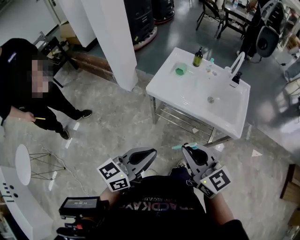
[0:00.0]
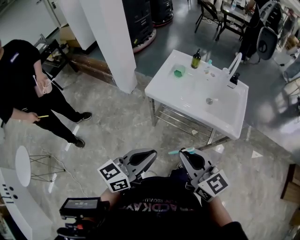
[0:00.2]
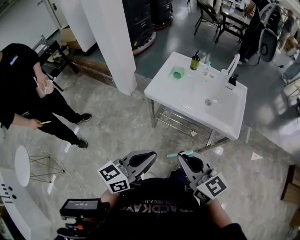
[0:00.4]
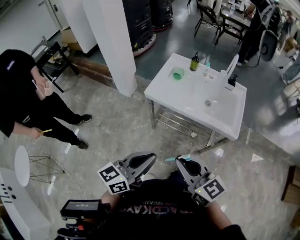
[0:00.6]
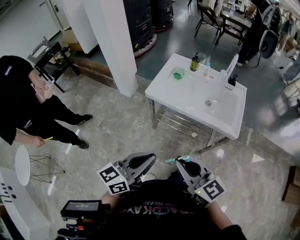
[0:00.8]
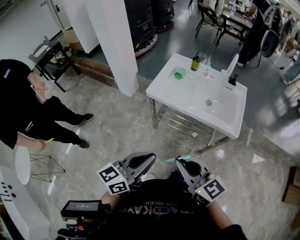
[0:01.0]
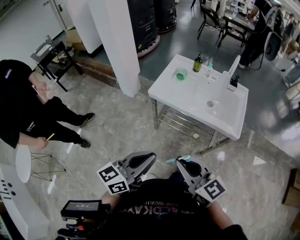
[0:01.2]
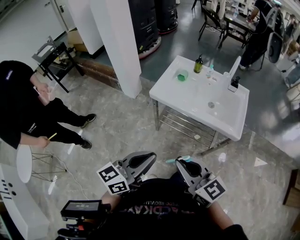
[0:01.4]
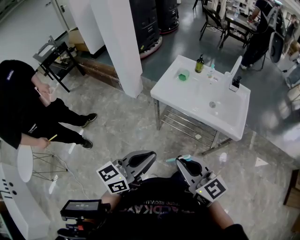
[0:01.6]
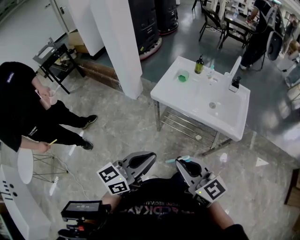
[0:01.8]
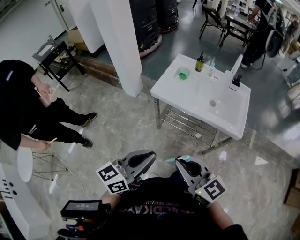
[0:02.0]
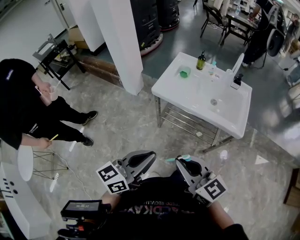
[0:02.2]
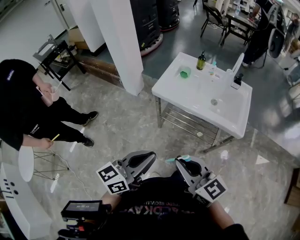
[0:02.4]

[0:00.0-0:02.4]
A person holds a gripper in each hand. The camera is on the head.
0:00.0 to 0:01.2: The right gripper is displaced backward by roughly 5 cm.
0:01.2 to 0:02.4: The grippers move only a little.

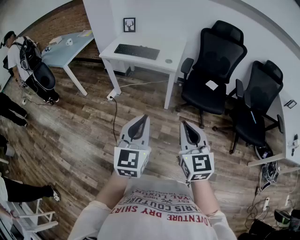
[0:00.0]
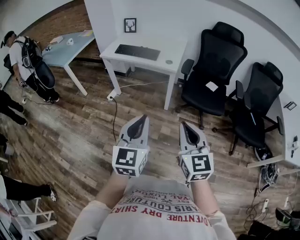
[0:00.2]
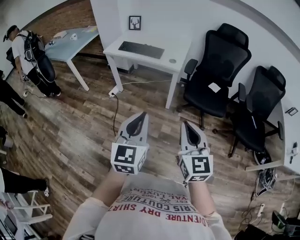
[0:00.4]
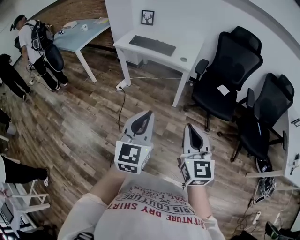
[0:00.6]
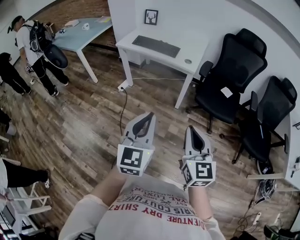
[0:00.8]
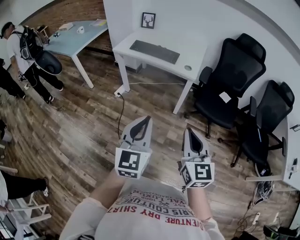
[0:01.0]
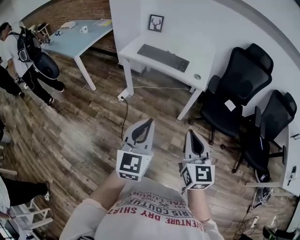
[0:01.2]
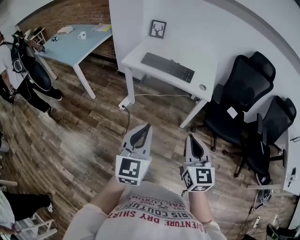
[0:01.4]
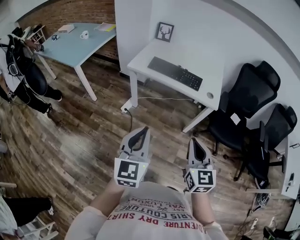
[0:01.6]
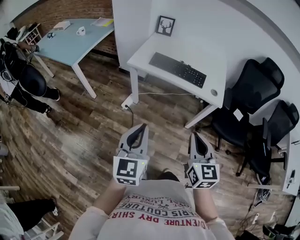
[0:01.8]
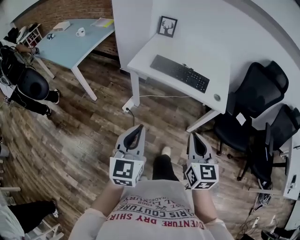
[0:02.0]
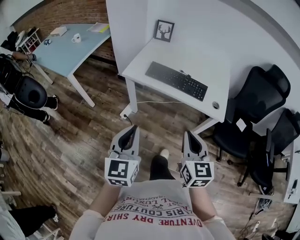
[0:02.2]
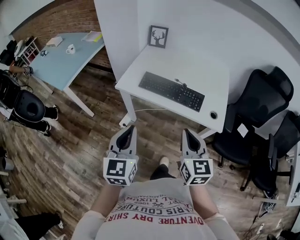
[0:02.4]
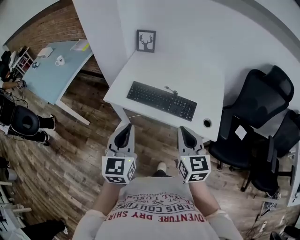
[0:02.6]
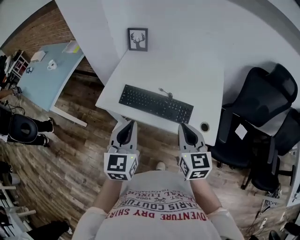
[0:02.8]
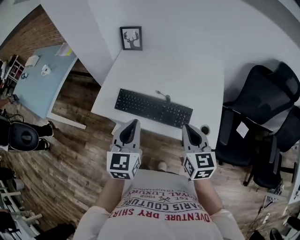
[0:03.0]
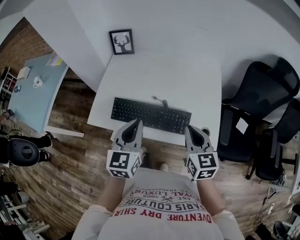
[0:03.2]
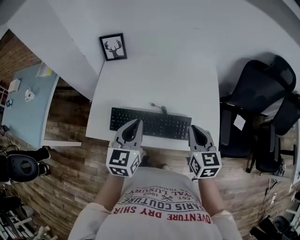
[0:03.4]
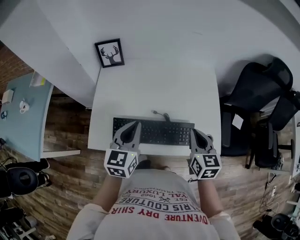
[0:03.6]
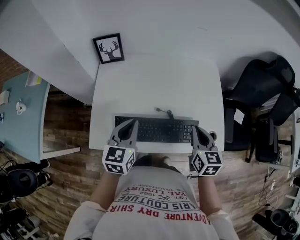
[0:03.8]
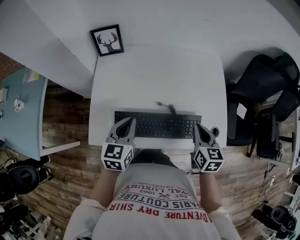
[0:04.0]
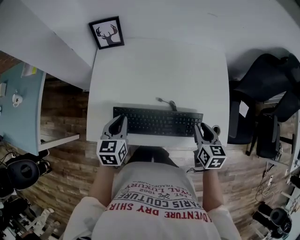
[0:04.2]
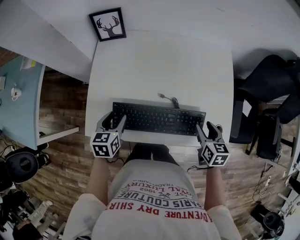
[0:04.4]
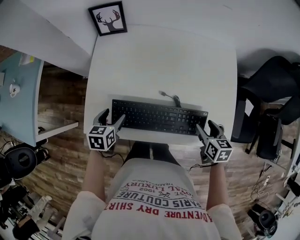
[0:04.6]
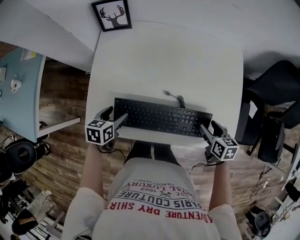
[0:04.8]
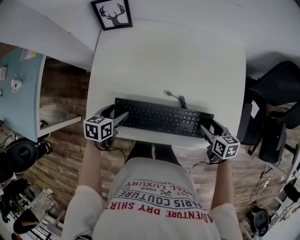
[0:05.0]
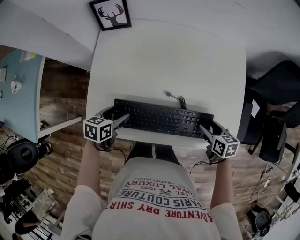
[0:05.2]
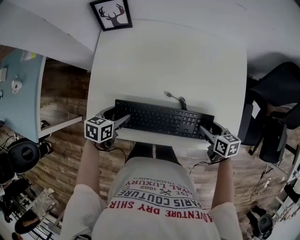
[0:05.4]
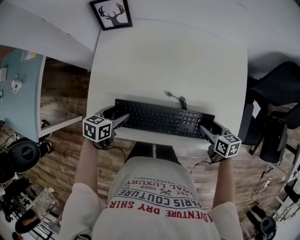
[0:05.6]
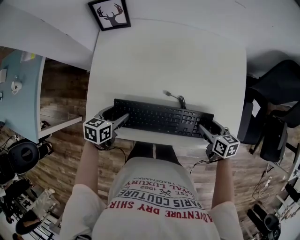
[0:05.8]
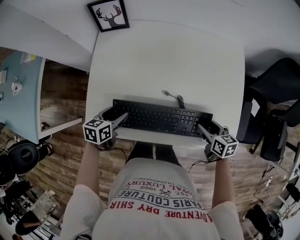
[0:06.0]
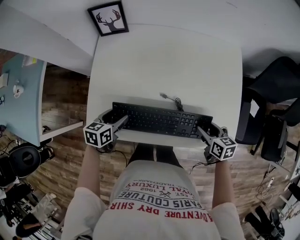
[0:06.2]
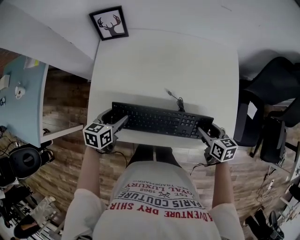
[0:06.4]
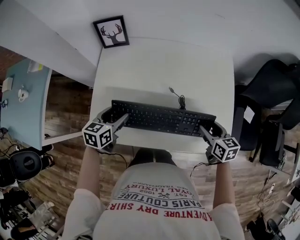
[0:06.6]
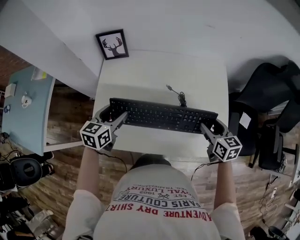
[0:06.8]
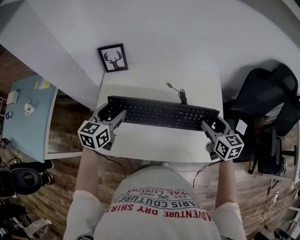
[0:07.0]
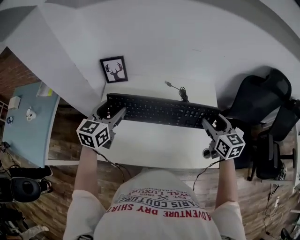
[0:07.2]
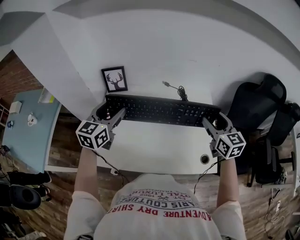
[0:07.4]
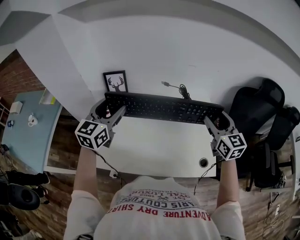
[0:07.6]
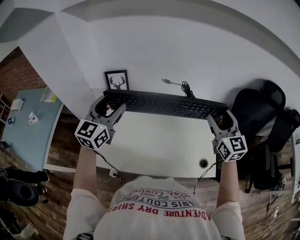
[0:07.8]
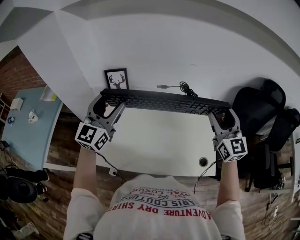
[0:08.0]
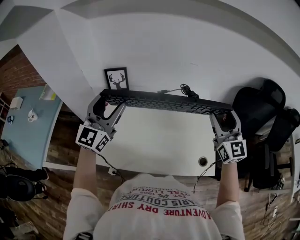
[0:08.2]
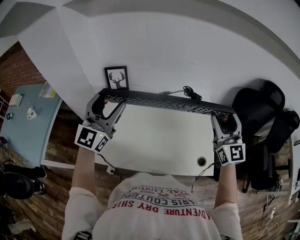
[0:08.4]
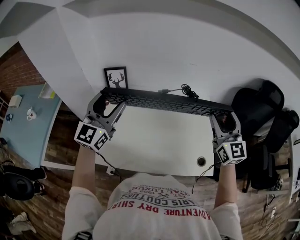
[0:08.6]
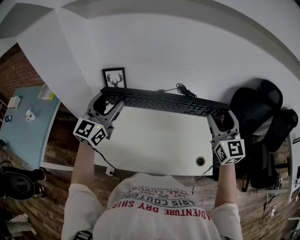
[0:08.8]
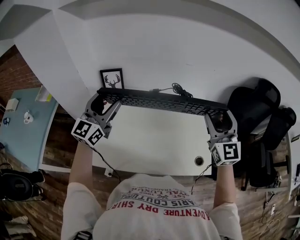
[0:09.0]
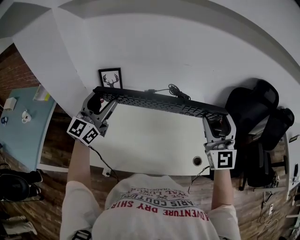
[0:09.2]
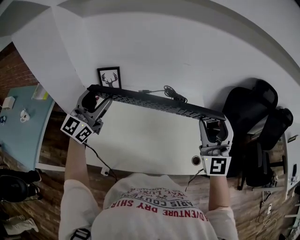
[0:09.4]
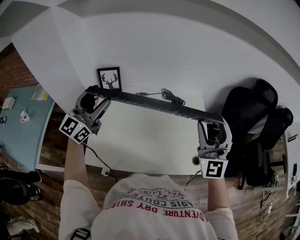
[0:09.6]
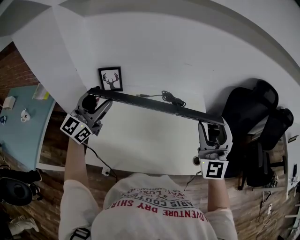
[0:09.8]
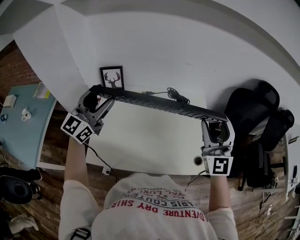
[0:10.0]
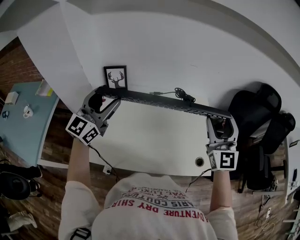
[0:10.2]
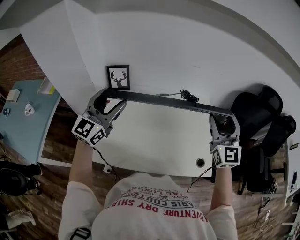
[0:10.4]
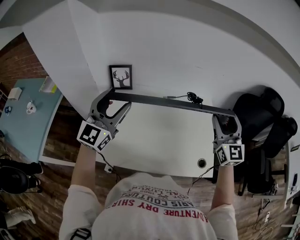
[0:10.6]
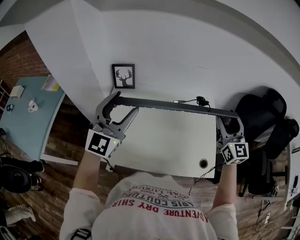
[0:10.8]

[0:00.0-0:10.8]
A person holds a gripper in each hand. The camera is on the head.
0:00.0 to 0:01.6: Both grippers move to the left and forward, roughly 40 cm.
0:01.6 to 0:03.0: Both grippers are carried forward, approximately 50 cm.
0:03.0 to 0:04.6: The left gripper goes roughly 35 cm downward, to the left and forward, tilts its fingers roughly 30 degrees downward, and opens. The right gripper heads downward and forward, covering about 25 cm, changes its angle by roughly 30 degrees, and opens.
0:04.6 to 0:06.2: The grippers move only a little.
0:06.2 to 0:07.8: Both grippers move upward, about 35 cm. The right gripper angles its fingers upward, by approximately 40 degrees. Meanwhile the left gripper points its fingers some 40 degrees further upward.
0:07.8 to 0:09.2: The right gripper is displaced backward by approximately 5 cm, and rotates approximately 20 degrees.
0:09.2 to 0:10.8: The right gripper goes approximately 5 cm forward. Meanwhile the left gripper moves approximately 5 cm.

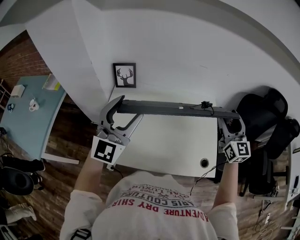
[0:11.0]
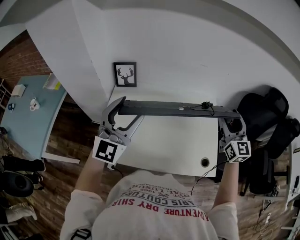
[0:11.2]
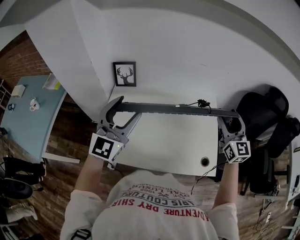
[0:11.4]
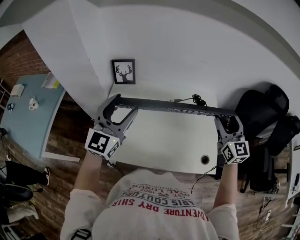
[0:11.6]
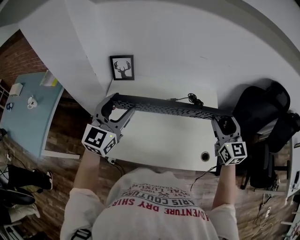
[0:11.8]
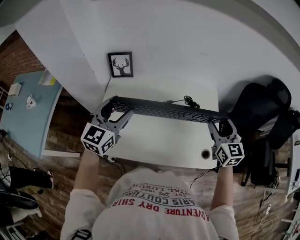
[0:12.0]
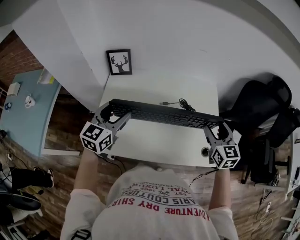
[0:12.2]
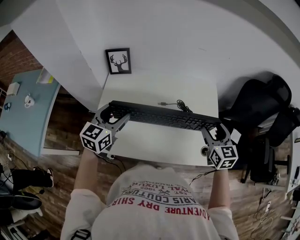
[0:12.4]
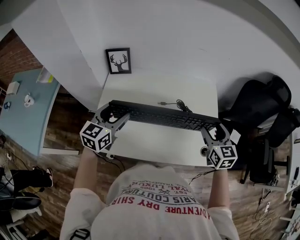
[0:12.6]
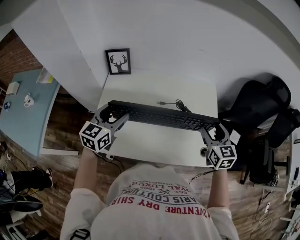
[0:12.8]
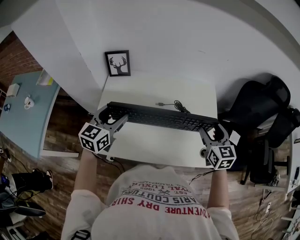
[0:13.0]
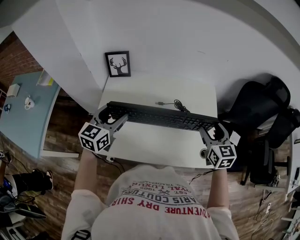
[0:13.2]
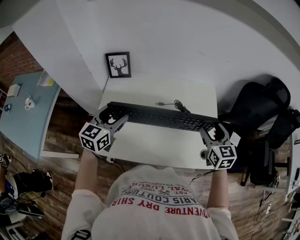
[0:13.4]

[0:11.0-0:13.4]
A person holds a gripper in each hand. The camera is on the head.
0:11.0 to 0:12.2: The grippers both shift downward by roughly 15 cm. The right gripper changes its angle by approximately 20 degrees. The left gripper changes its angle by approximately 40 degrees.
0:12.2 to 0:13.4: The grippers make only small movements.

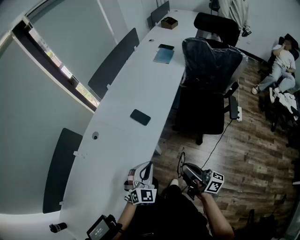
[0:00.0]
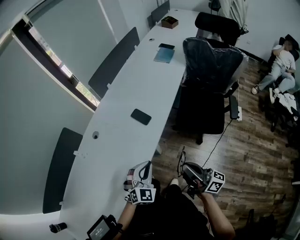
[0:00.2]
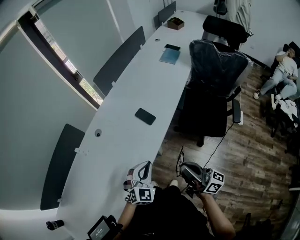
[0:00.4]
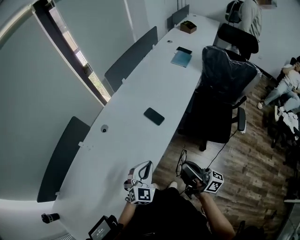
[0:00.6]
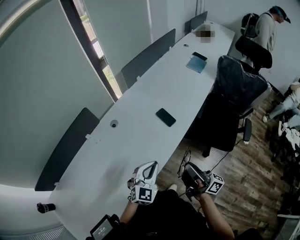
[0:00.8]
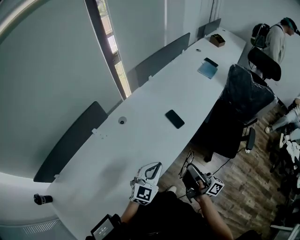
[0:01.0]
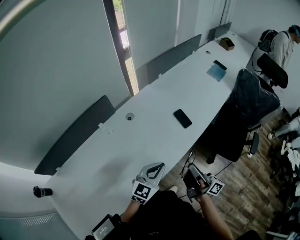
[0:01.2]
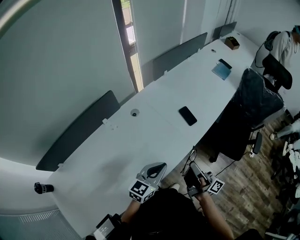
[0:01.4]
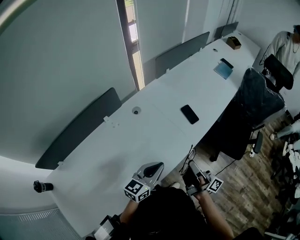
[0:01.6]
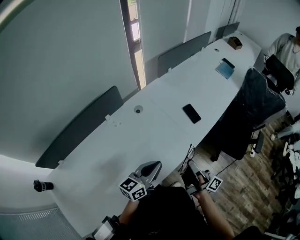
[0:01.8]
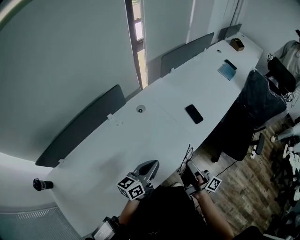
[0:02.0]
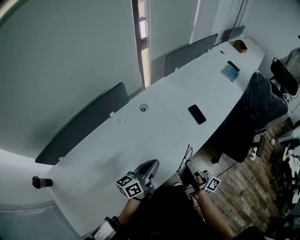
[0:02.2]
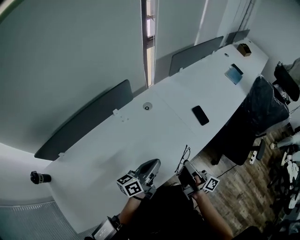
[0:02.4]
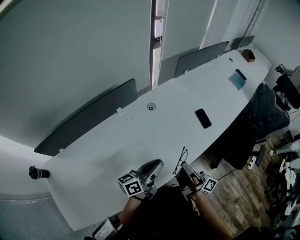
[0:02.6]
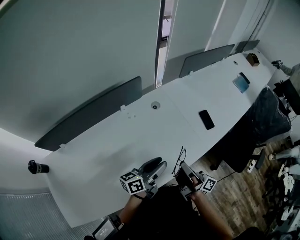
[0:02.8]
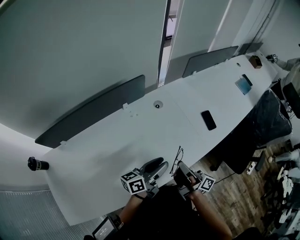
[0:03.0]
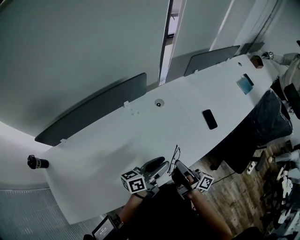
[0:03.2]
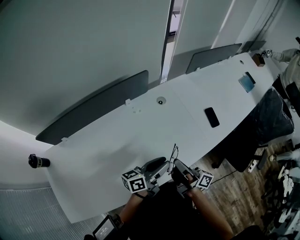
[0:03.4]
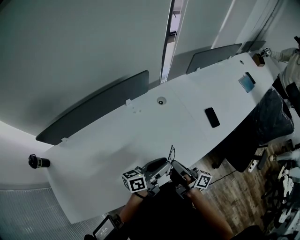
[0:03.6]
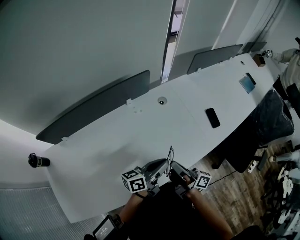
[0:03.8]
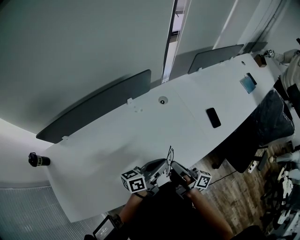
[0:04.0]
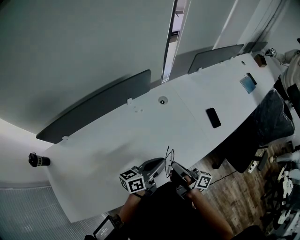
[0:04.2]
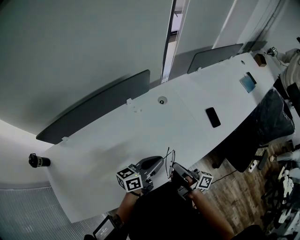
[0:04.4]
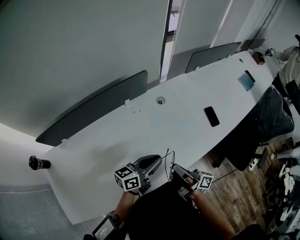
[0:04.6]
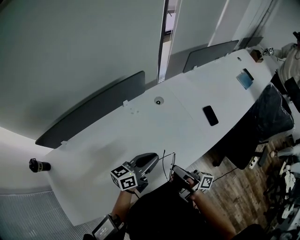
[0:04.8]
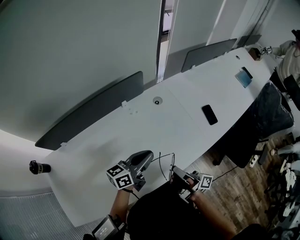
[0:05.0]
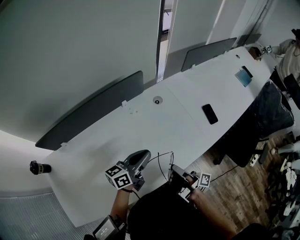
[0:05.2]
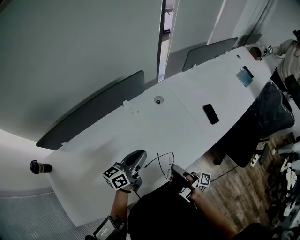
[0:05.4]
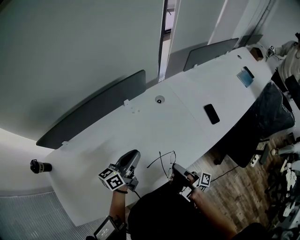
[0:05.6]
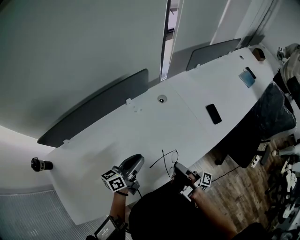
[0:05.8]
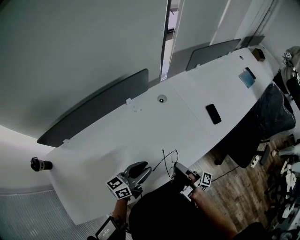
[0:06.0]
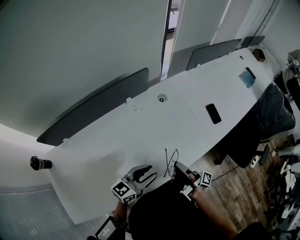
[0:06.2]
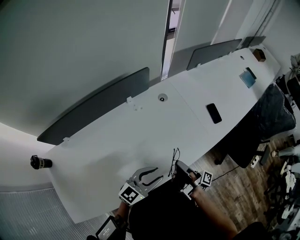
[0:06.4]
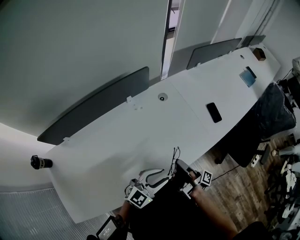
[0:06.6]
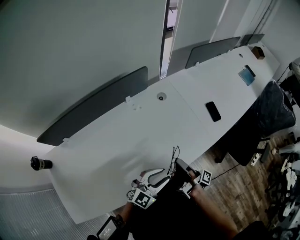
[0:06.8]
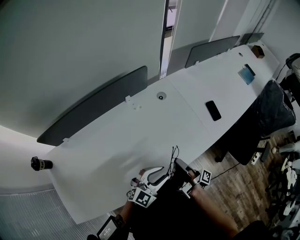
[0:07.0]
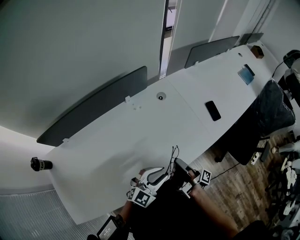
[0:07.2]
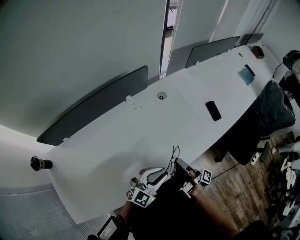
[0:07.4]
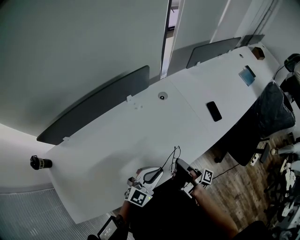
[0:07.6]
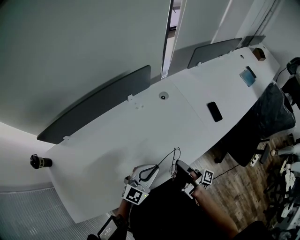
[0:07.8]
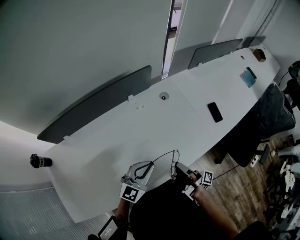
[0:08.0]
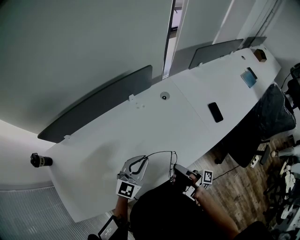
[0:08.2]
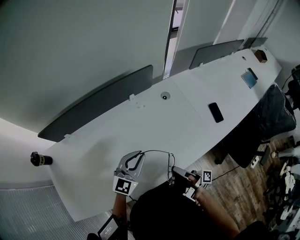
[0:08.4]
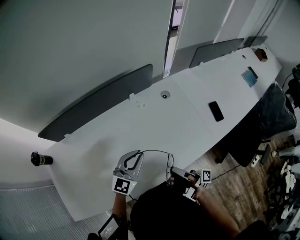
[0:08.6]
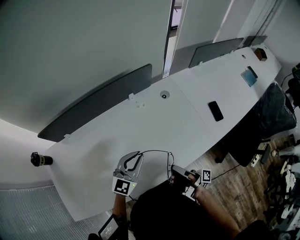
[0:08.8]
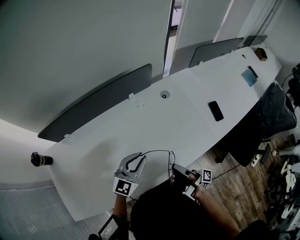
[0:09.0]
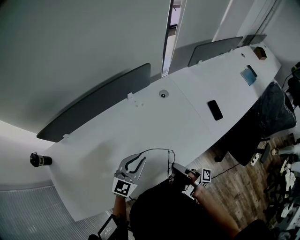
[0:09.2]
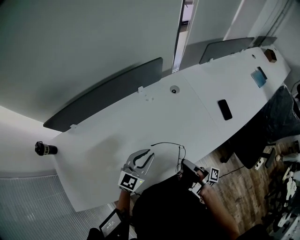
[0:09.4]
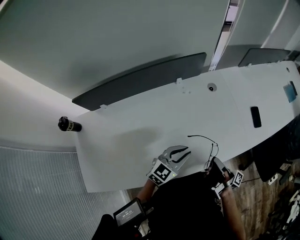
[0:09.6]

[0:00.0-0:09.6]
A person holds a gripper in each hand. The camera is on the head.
0:00.0 to 0:01.6: The left gripper ends up about 20 cm from where it was, and rolls counterclockwise, seen from behind, by about 60 degrees.
0:01.6 to 0:03.2: The left gripper ends up approximately 10 cm from where it was, rotates roughly 40 degrees, and opens.
0:03.2 to 0:04.8: The left gripper closes its fingers.
0:04.8 to 0:06.4: The left gripper moves about 10 cm, changes its angle by roughly 30 degrees, and opens its fingers.
0:06.4 to 0:08.0: The left gripper moves some 5 cm, swivels some 20 degrees, and closes up.
